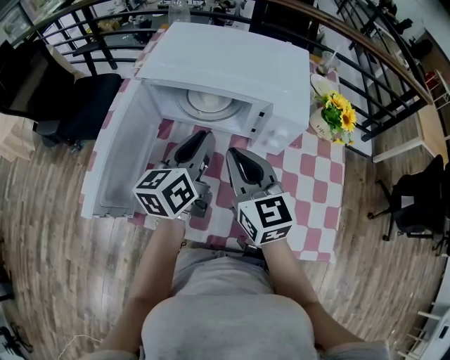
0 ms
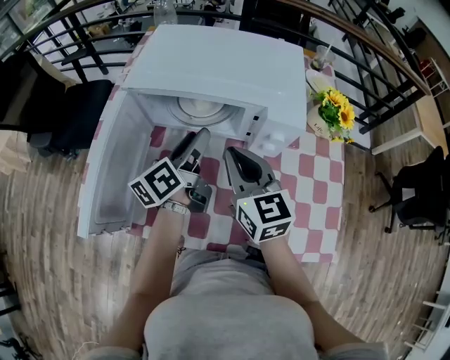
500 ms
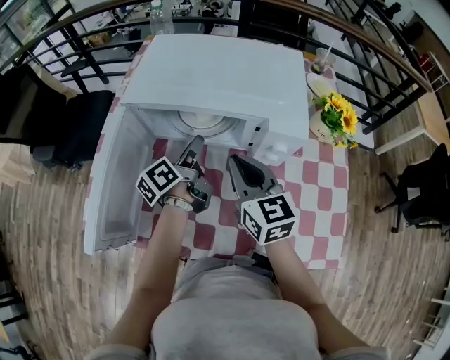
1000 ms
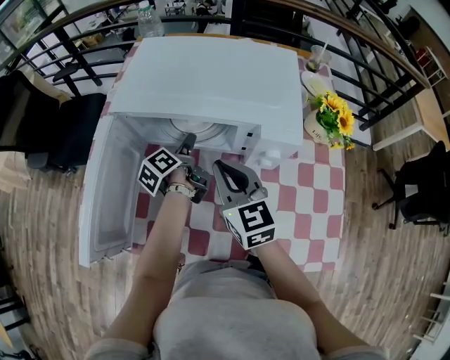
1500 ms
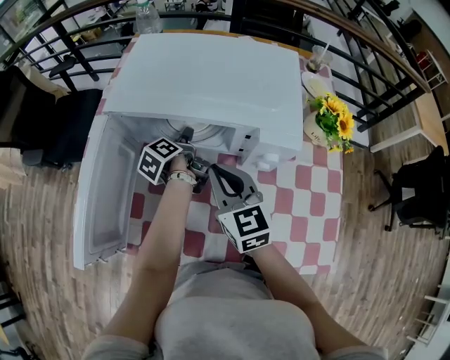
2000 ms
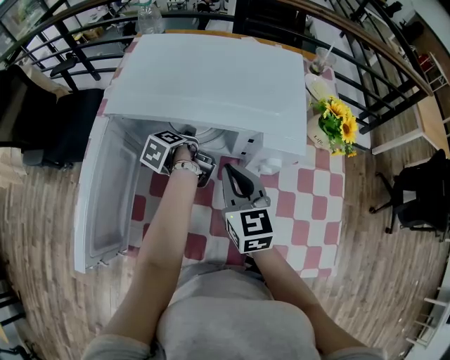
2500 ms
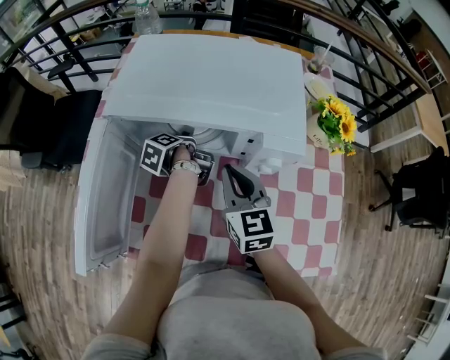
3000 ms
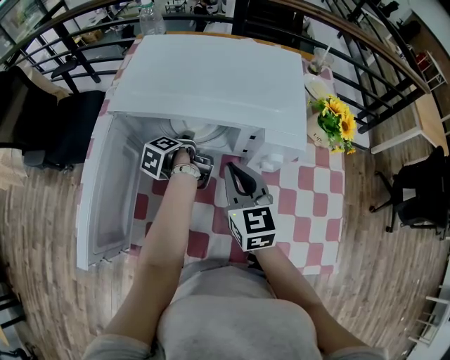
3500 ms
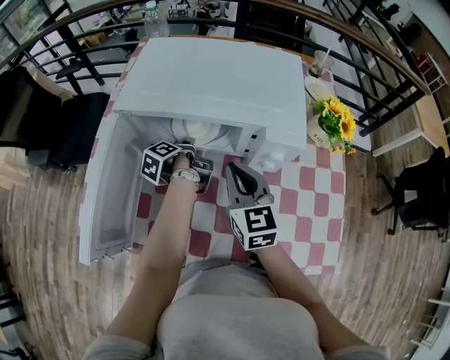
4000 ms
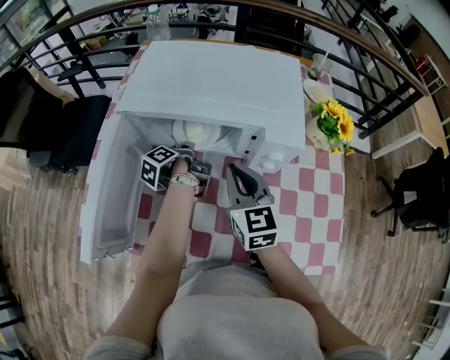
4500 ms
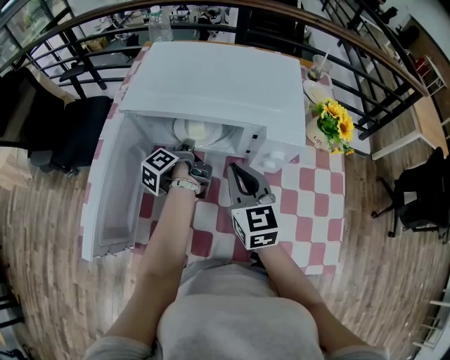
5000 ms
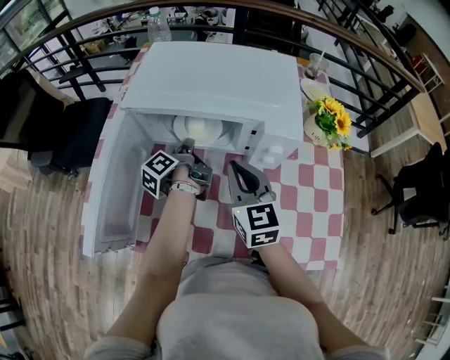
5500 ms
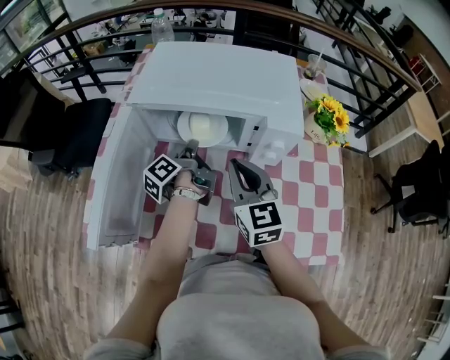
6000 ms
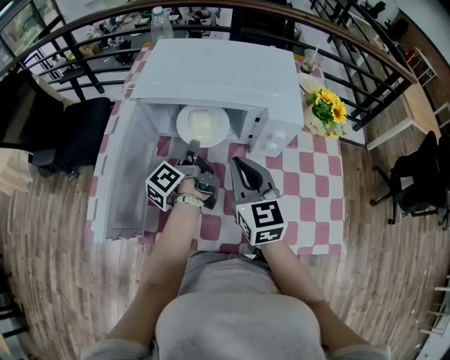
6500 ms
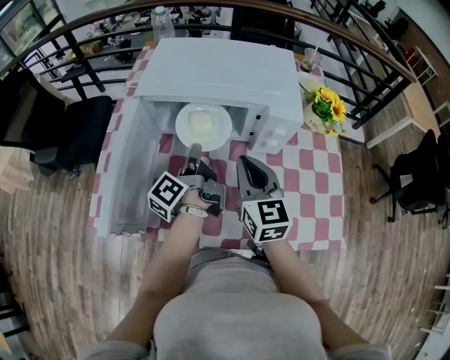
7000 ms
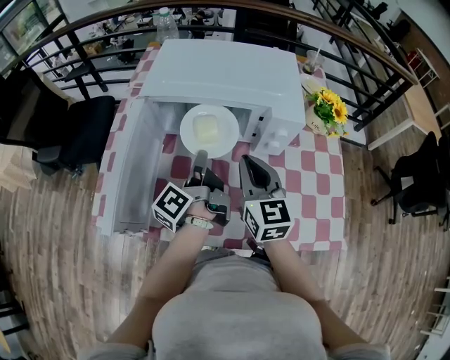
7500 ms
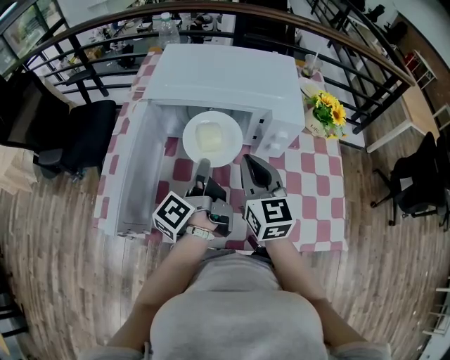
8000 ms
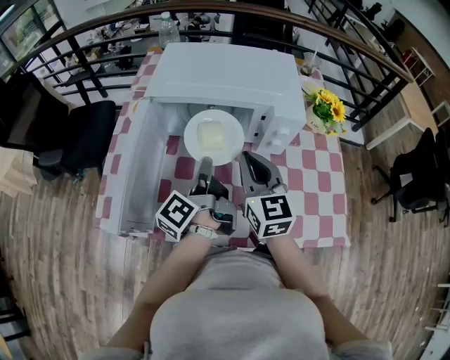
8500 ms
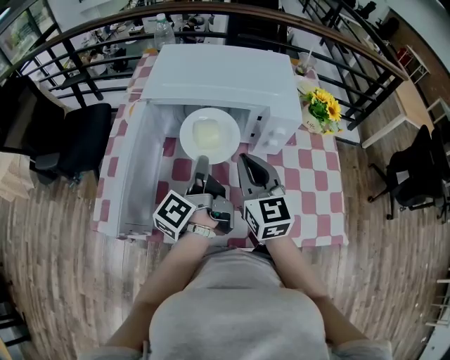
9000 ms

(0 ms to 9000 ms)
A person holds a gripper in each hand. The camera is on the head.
0 ms - 2000 ms: The left gripper travels downward and forward by approximately 25 cm, rolls counterclockwise, seen from behind, by about 40 degrees, and opens. Meanwhile the right gripper moves downward and forward, roughly 10 cm.
2000 ms - 4500 ms: The left gripper closes up.
4500 ms - 7000 ms: The left gripper travels upward and backward by roughly 15 cm, and turns by approximately 30 degrees; the right gripper moves backward, approximately 5 cm.
7000 ms - 9000 ms: The left gripper ends up roughly 5 cm from where it was.

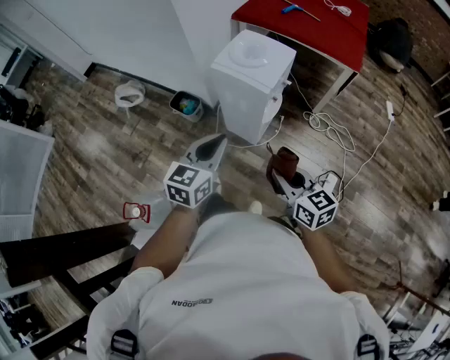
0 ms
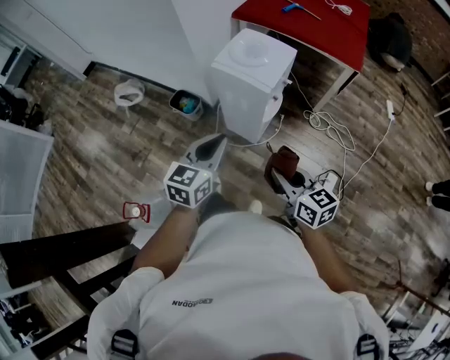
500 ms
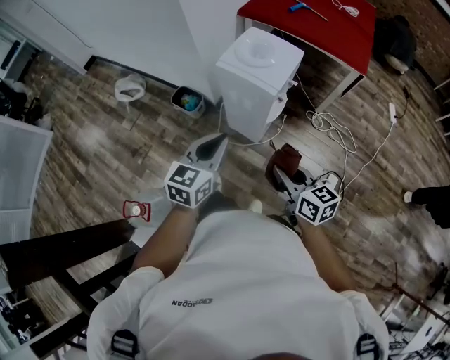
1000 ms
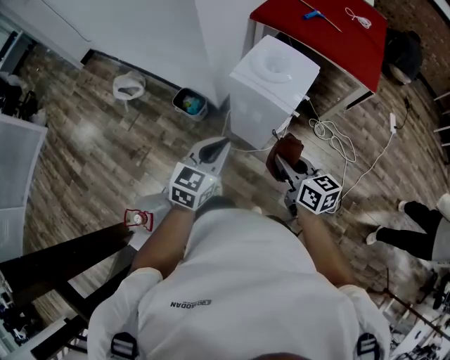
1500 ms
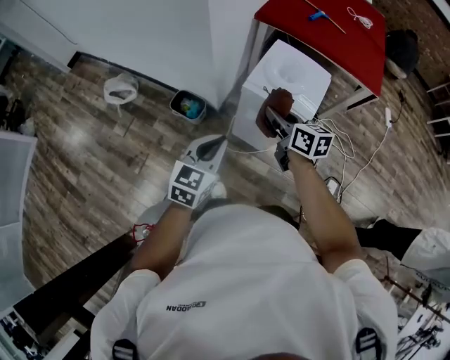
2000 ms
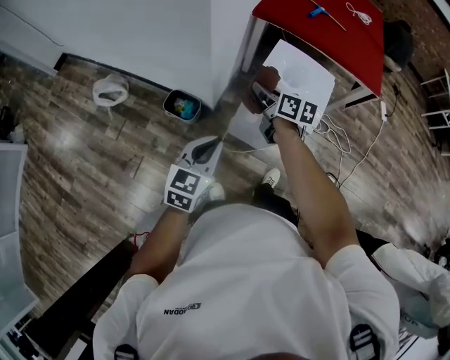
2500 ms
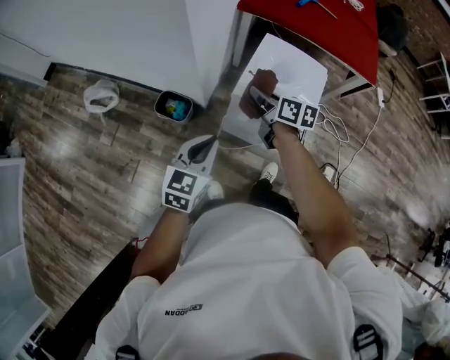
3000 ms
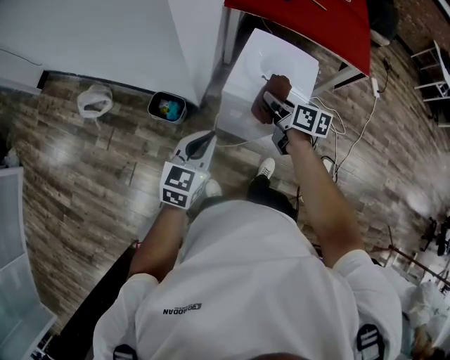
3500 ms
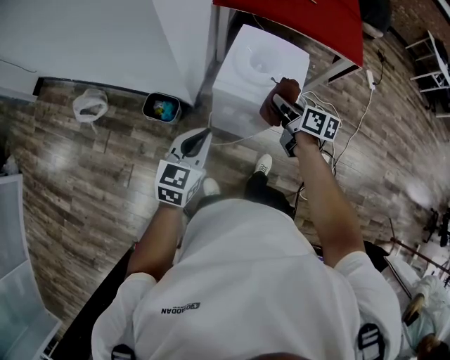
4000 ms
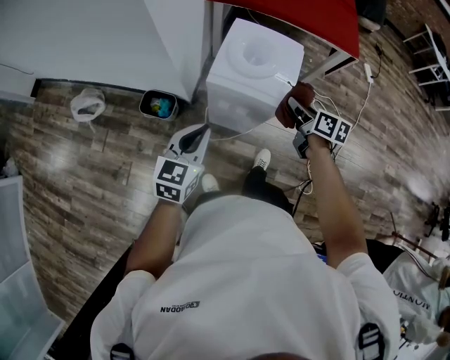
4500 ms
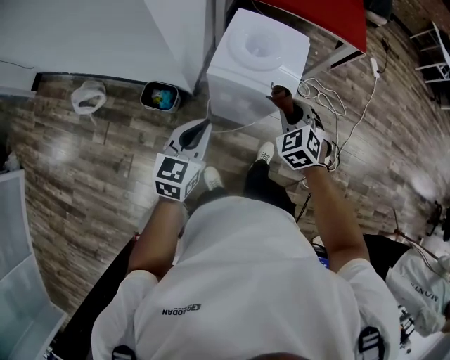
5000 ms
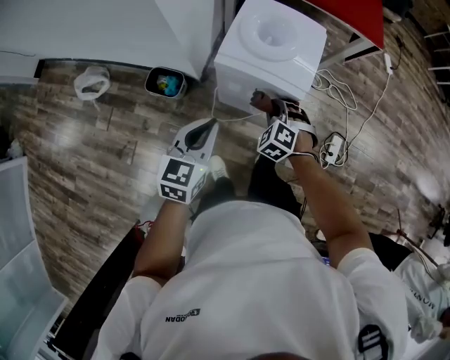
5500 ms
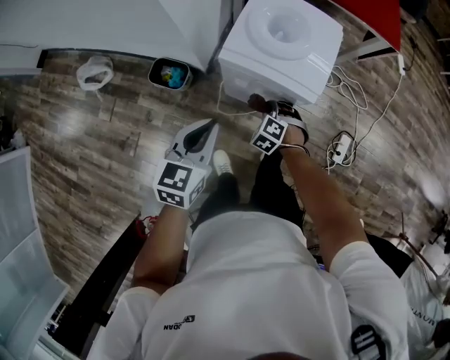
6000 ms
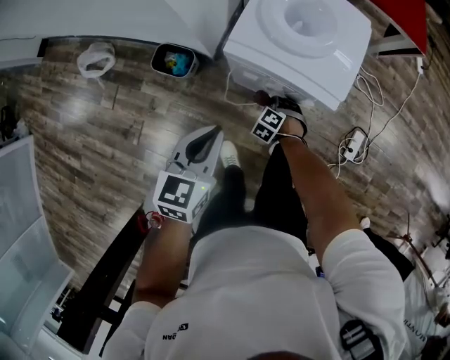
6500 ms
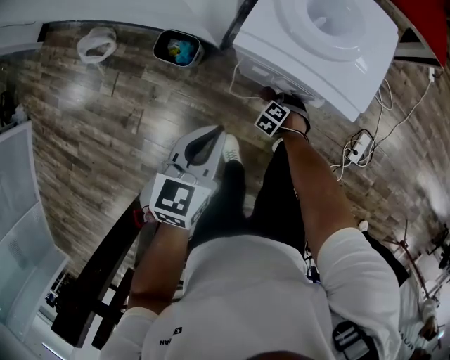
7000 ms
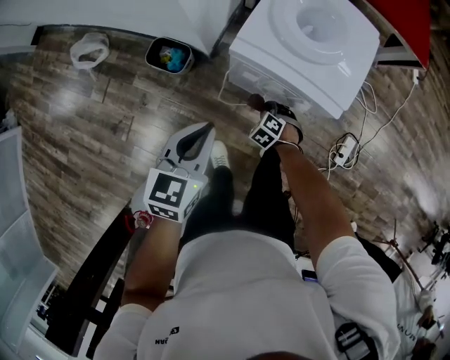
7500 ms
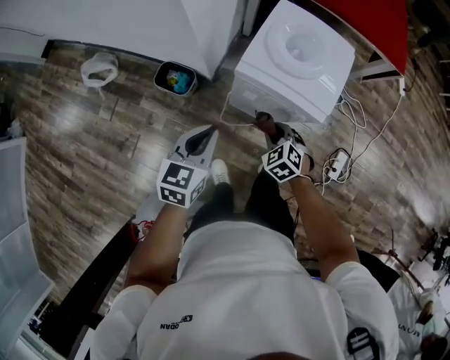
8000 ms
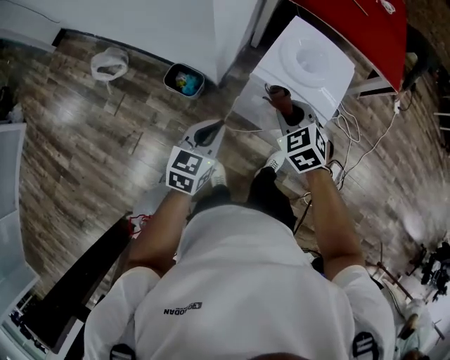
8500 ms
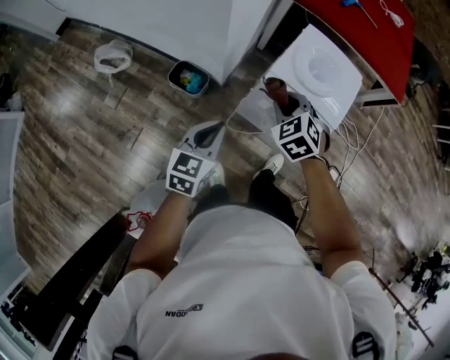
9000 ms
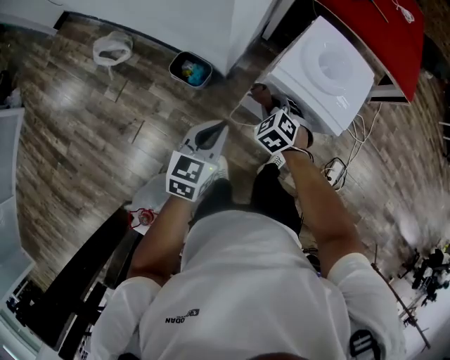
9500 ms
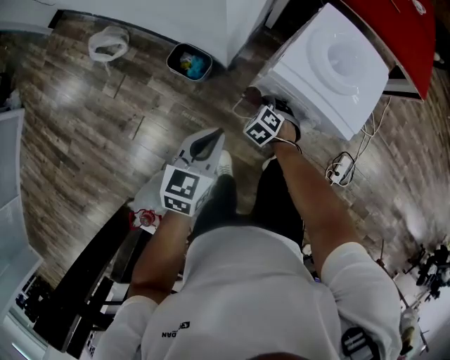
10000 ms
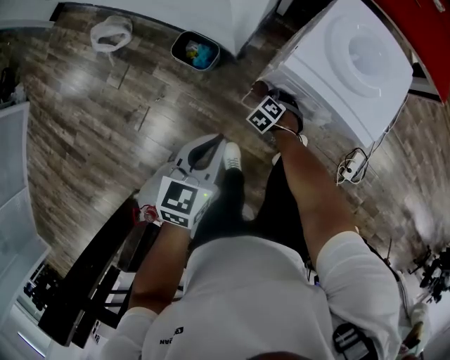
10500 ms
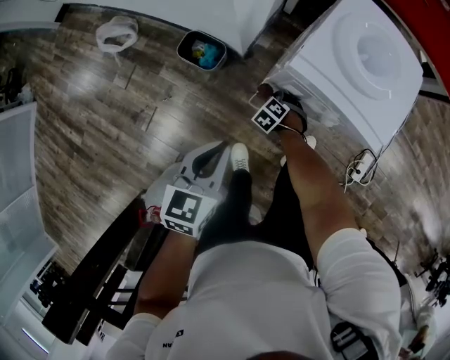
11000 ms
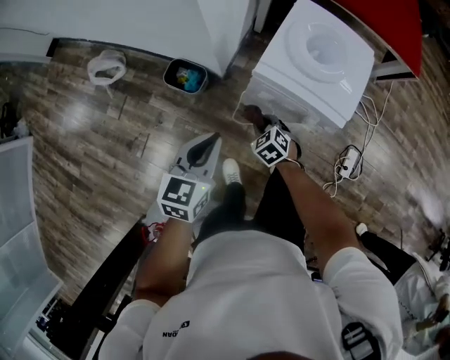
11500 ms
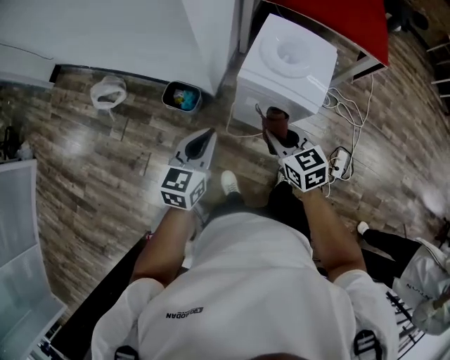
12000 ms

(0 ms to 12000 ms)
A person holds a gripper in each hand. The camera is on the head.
0 ms - 2000 ms: The left gripper moves forward and to the left, roughly 20 cm; the right gripper is displaced forward and to the left by some 35 cm.
2000 ms - 4000 ms: The left gripper travels forward by about 5 cm; the right gripper shifts some 15 cm to the right, downward and forward, and rotates approximately 20 degrees.
4000 ms - 6000 ms: The right gripper shifts approximately 25 cm downward and backward, and twists approximately 90 degrees counterclockwise, seen from behind. The left gripper heads downward, covering roughly 5 cm.
6000 ms - 8000 ms: The right gripper moves some 20 cm downward and comes back.
8000 ms - 10000 ms: The right gripper goes roughly 15 cm to the left, downward and forward.
10000 ms - 12000 ms: The left gripper travels upward by approximately 10 cm; the right gripper travels upward by roughly 25 cm, and points its fingers some 30 degrees further upward.

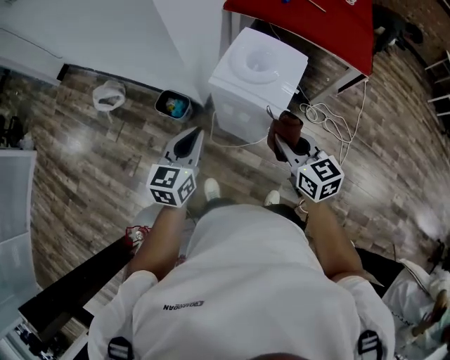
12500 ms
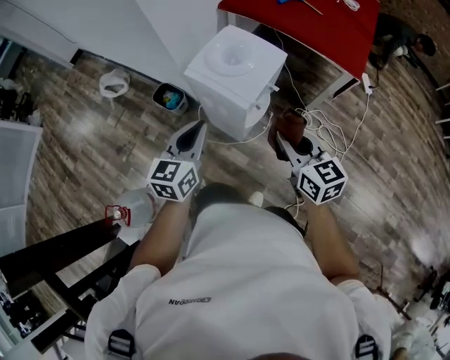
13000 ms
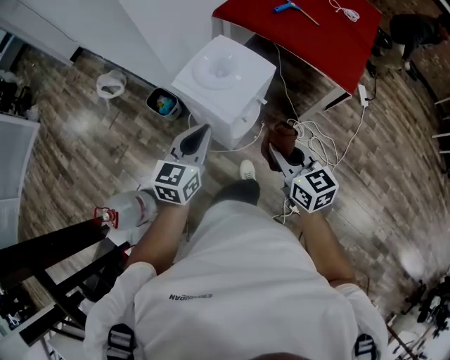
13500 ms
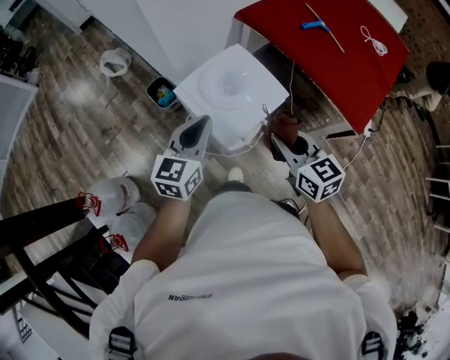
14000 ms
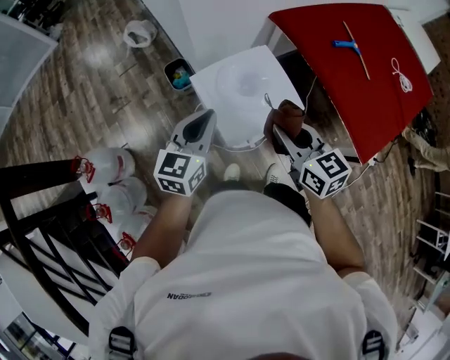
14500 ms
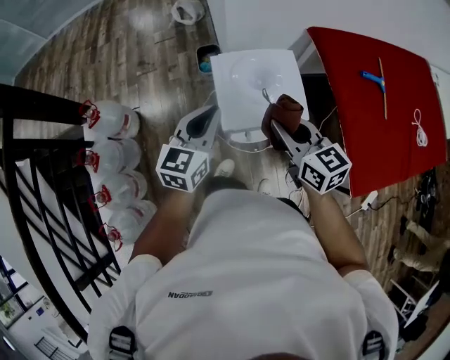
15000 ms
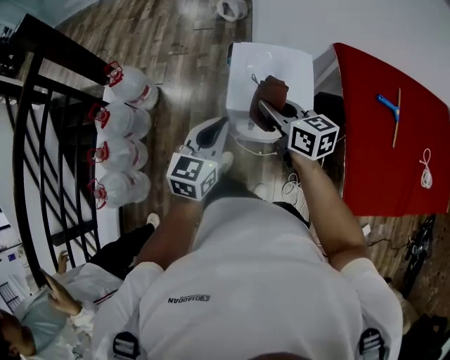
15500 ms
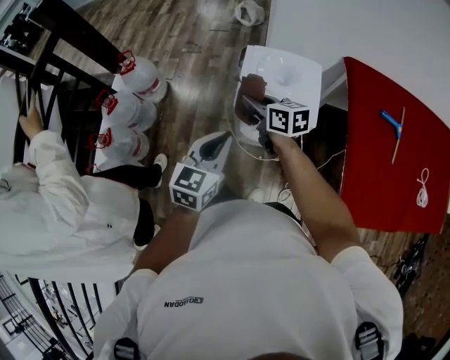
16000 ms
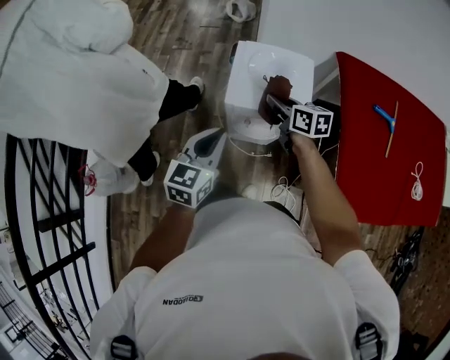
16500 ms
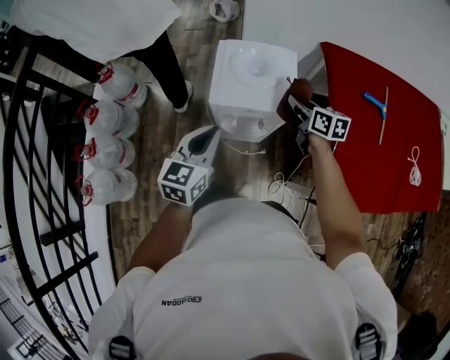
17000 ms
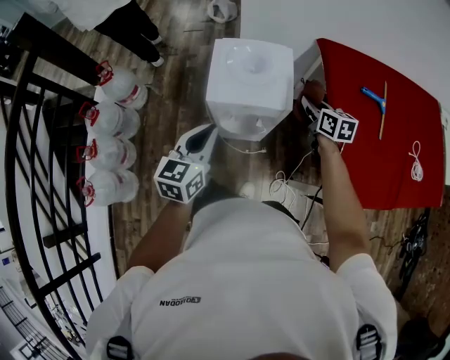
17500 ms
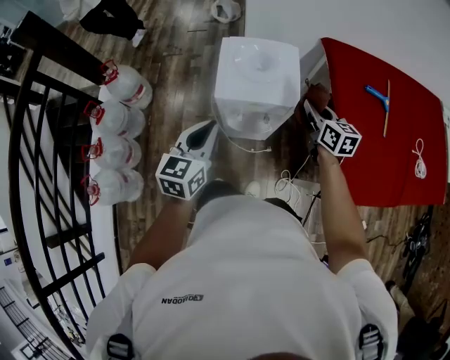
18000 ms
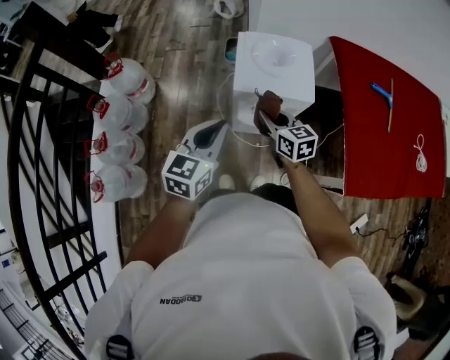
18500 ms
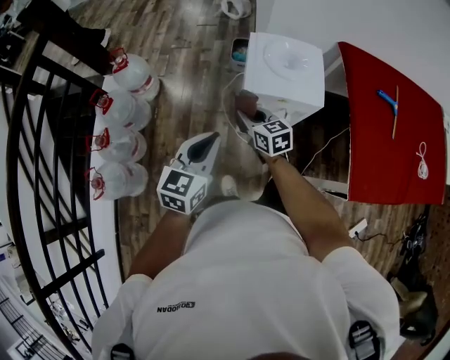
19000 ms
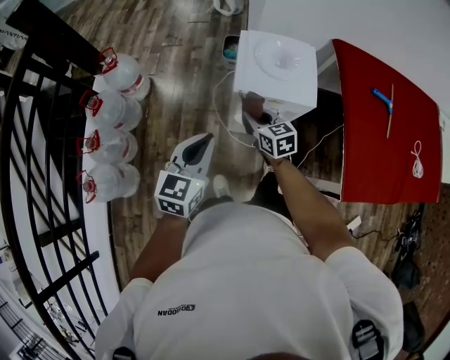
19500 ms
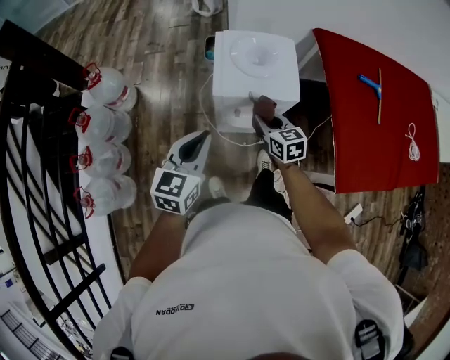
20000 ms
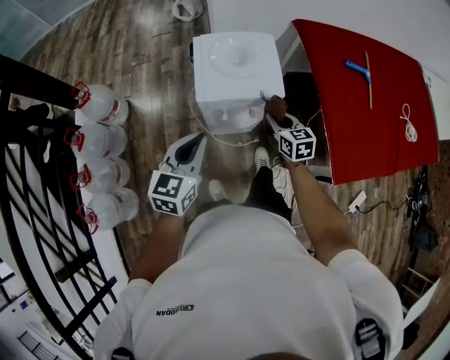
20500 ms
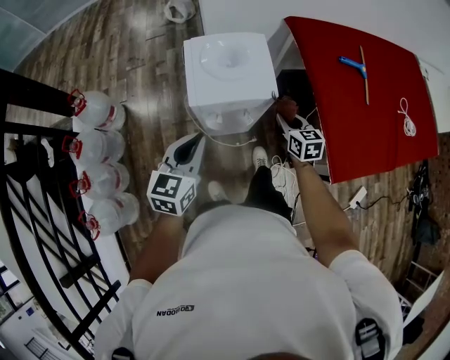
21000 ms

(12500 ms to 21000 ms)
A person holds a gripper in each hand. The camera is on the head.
12500 ms - 14500 ms: The left gripper changes place by some 20 cm, and swivels roughly 30 degrees, while the right gripper changes place by approximately 20 cm, and changes its angle by some 40 degrees.
14500 ms - 16500 ms: The left gripper moves roughly 20 cm, and rotates approximately 30 degrees, while the right gripper is displaced downward by some 10 cm, and turns by roughly 40 degrees.
16500 ms - 19000 ms: The left gripper goes roughly 10 cm to the left and backward, while the right gripper heads to the left and backward, covering approximately 15 cm.
19000 ms - 21000 ms: The right gripper travels to the right by about 30 cm, and turns by some 30 degrees. The left gripper goes some 10 cm to the right and forward.
